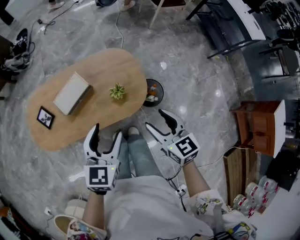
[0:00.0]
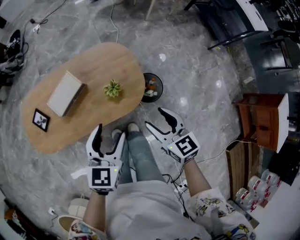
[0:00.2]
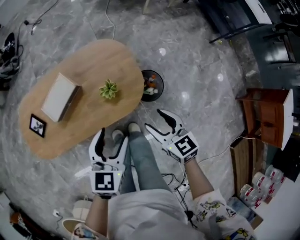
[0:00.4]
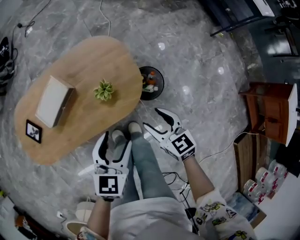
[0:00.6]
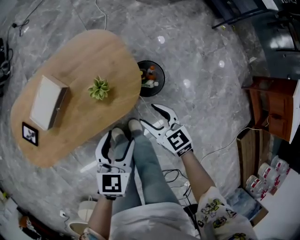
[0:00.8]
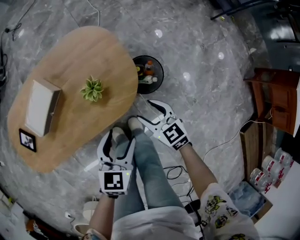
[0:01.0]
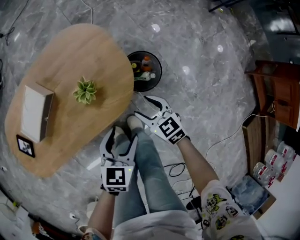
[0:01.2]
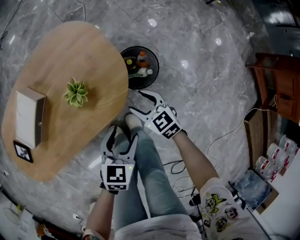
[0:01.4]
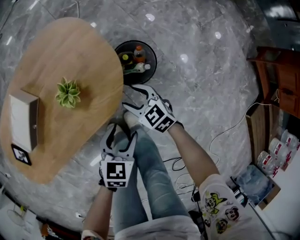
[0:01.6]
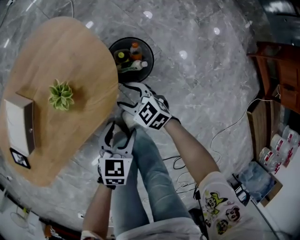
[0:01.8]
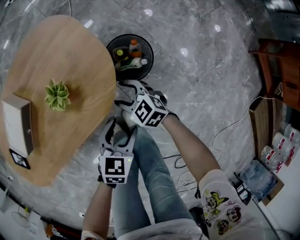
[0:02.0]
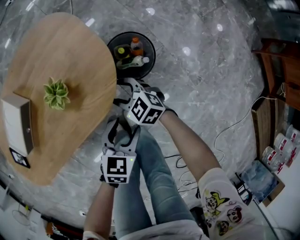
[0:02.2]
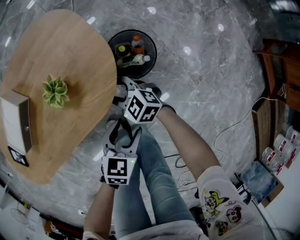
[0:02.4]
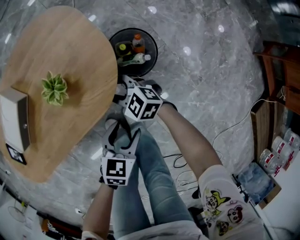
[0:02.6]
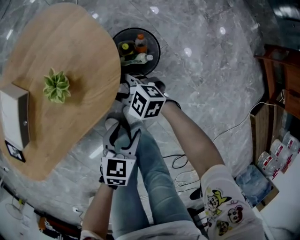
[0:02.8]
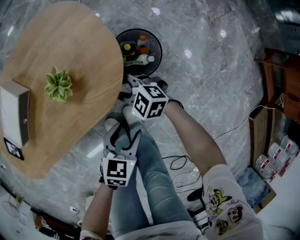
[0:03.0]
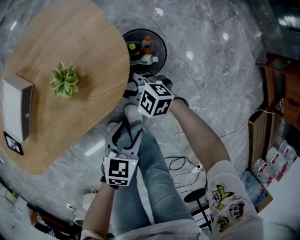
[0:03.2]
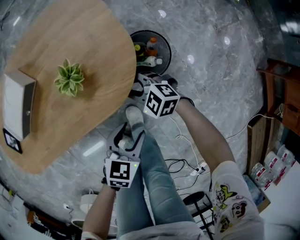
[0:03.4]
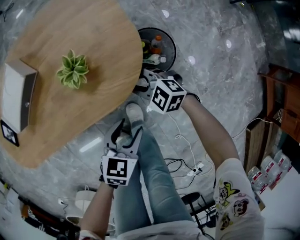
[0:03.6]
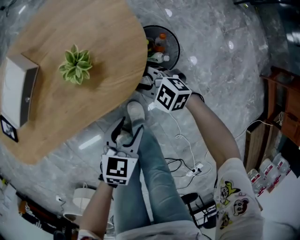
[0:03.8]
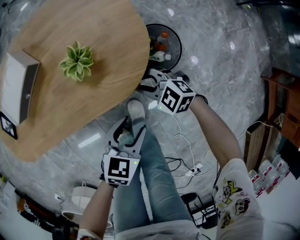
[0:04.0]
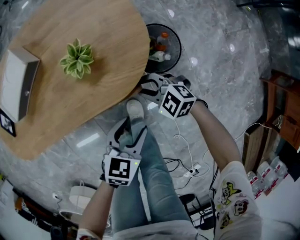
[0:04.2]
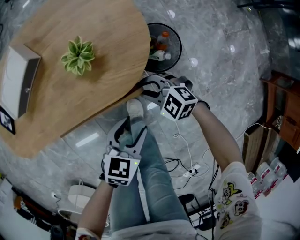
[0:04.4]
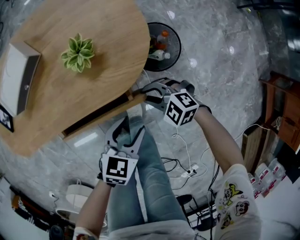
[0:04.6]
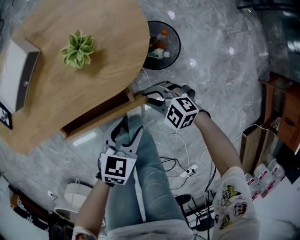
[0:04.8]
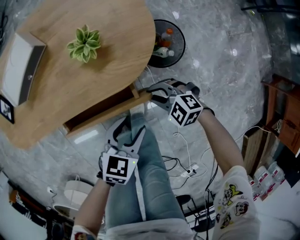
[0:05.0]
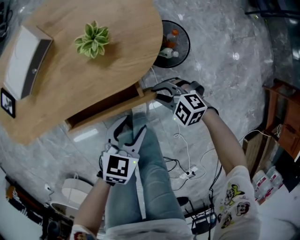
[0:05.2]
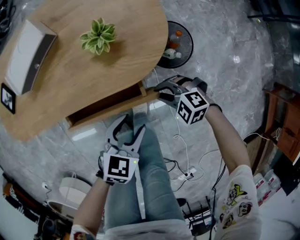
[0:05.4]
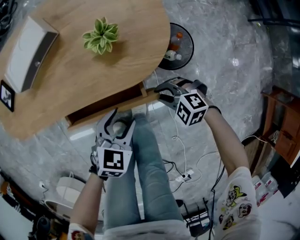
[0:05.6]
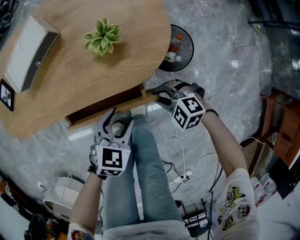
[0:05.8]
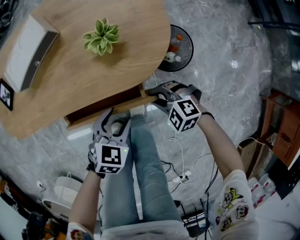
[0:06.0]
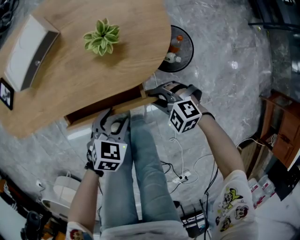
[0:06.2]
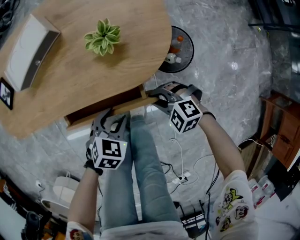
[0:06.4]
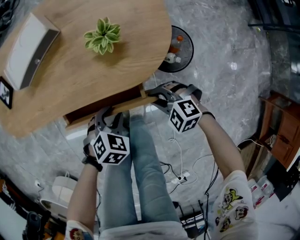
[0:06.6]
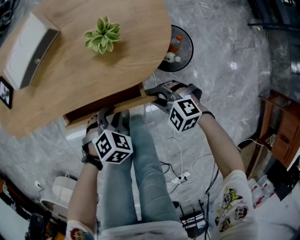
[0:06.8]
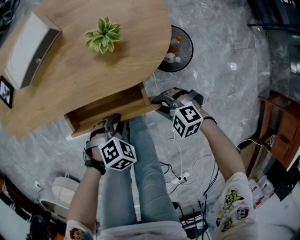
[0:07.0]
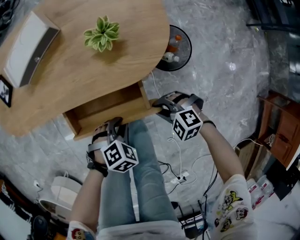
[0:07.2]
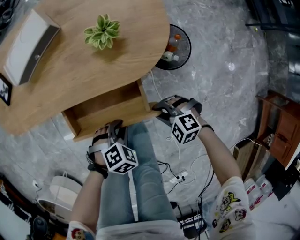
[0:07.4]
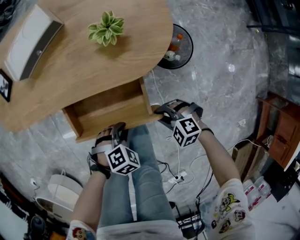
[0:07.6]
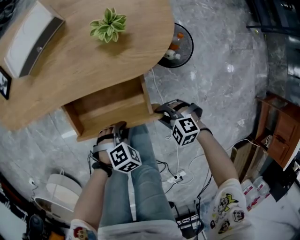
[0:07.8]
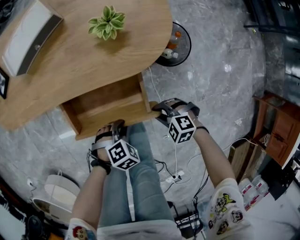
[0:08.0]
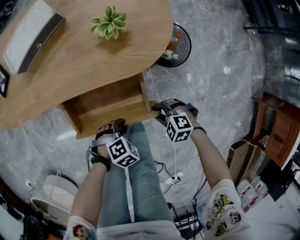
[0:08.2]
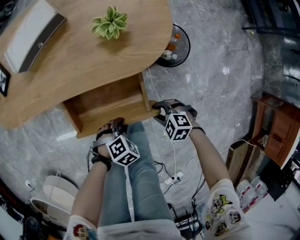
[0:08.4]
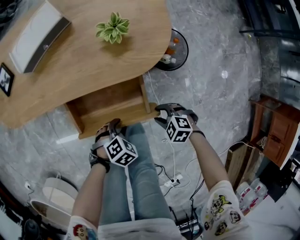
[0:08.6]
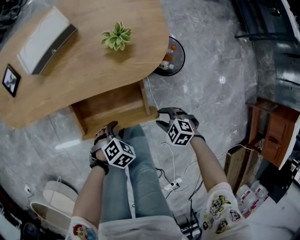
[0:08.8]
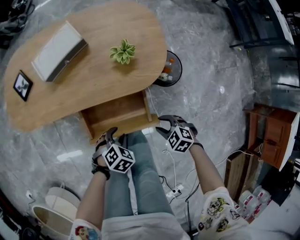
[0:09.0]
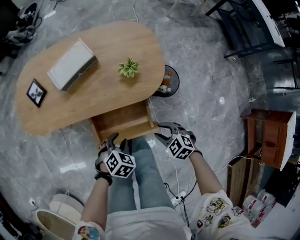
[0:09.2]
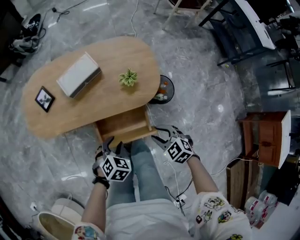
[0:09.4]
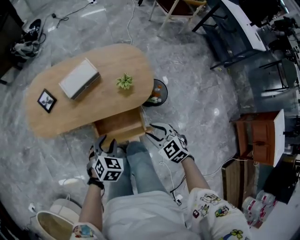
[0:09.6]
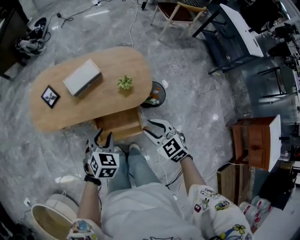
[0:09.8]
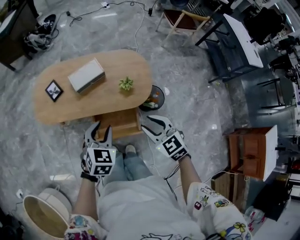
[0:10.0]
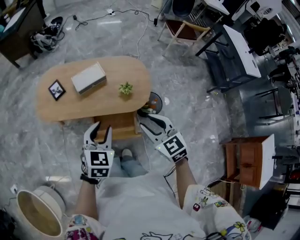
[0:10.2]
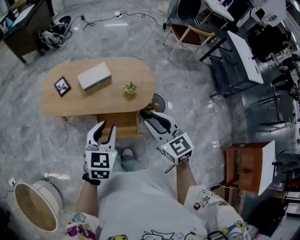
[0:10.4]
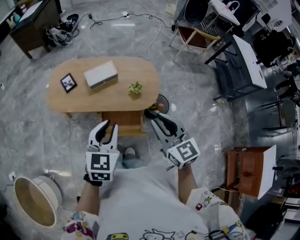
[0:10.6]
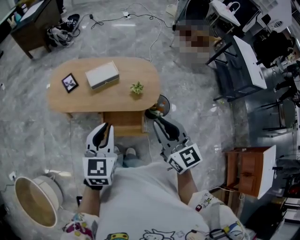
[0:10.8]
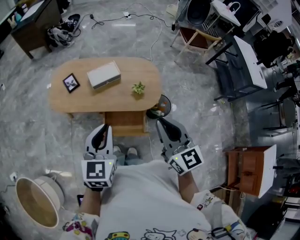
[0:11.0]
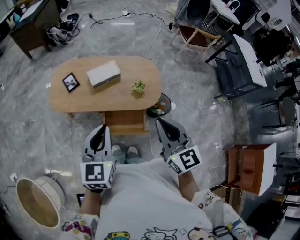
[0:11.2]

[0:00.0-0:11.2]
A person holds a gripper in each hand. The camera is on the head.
0.0 to 1.6 s: The right gripper heads downward, covering some 40 cm; the left gripper travels downward and to the right by about 40 cm, and changes its angle by approximately 30 degrees.
1.6 to 3.2 s: The right gripper moves some 5 cm, rotates roughly 30 degrees, and closes up.
3.2 to 4.8 s: The right gripper ends up roughly 10 cm from where it was.
4.8 to 6.4 s: The left gripper changes place by approximately 10 cm, and rotates about 20 degrees.
6.4 to 8.0 s: The right gripper ends up some 10 cm from where it was. The left gripper ends up some 15 cm from where it was, changes its angle by about 30 degrees, and closes.
8.0 to 9.6 s: Both grippers move upward, some 35 cm. The left gripper swivels about 40 degrees. Meanwhile the right gripper rotates some 40 degrees.
9.6 to 11.2 s: Both grippers travel together upward, about 30 cm. The right gripper tips its fingers upward by some 40 degrees, and closes its fingers. Meanwhile the left gripper angles its fingers upward, by roughly 40 degrees, and closes up.

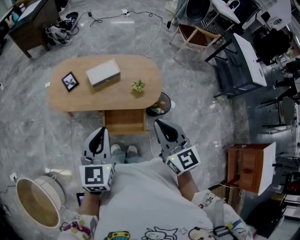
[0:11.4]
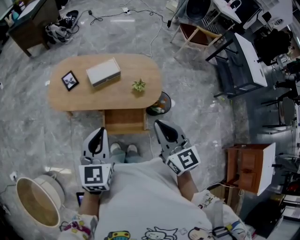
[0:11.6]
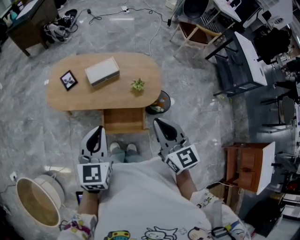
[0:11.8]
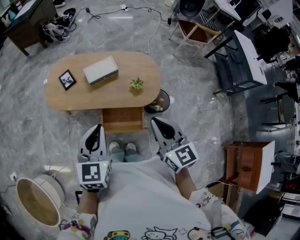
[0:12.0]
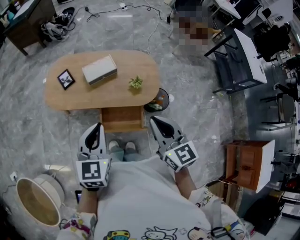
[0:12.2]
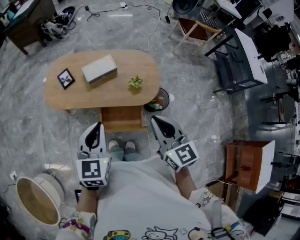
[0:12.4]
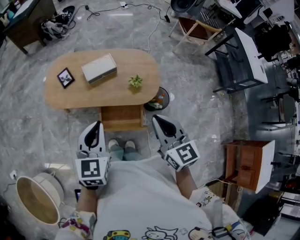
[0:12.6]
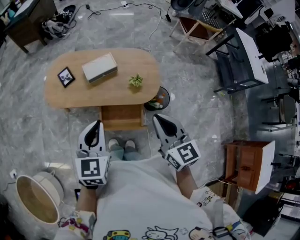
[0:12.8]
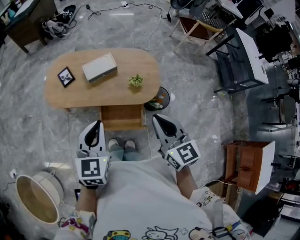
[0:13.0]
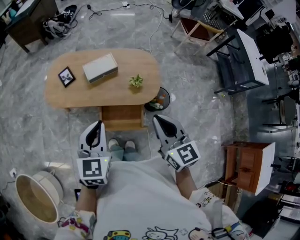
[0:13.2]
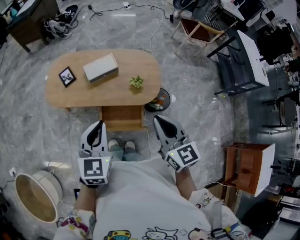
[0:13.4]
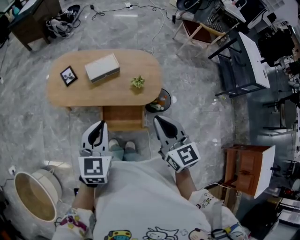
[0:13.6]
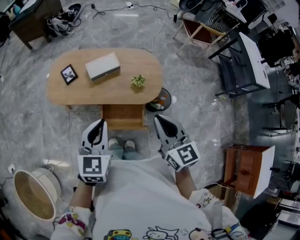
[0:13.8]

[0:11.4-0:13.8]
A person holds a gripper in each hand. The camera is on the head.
11.4 to 12.6 s: The grippers move only a little.
12.6 to 13.8 s: Neither gripper changes place.

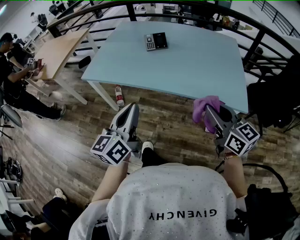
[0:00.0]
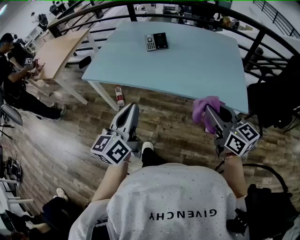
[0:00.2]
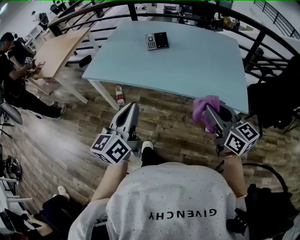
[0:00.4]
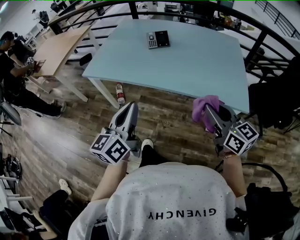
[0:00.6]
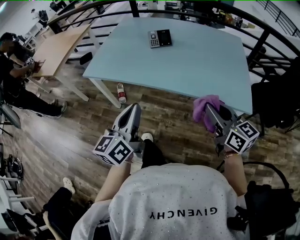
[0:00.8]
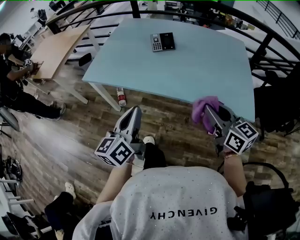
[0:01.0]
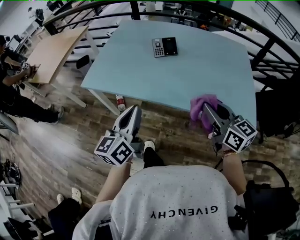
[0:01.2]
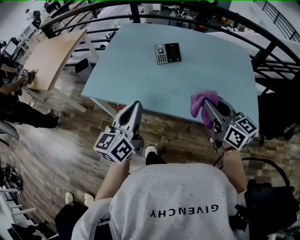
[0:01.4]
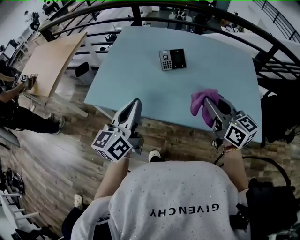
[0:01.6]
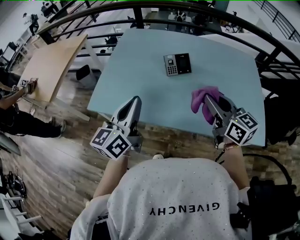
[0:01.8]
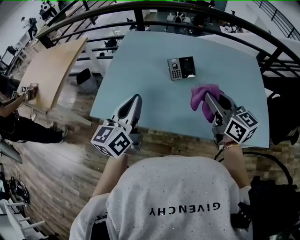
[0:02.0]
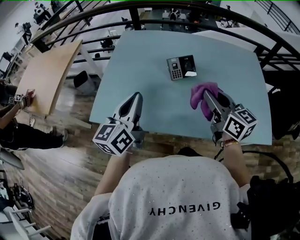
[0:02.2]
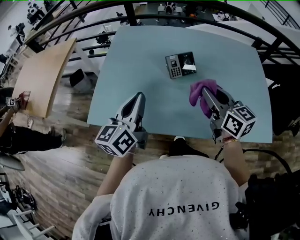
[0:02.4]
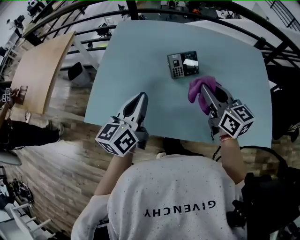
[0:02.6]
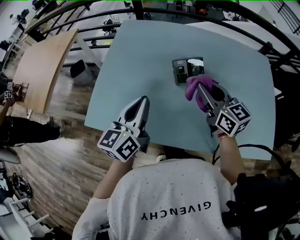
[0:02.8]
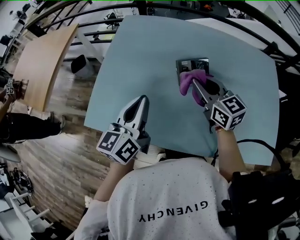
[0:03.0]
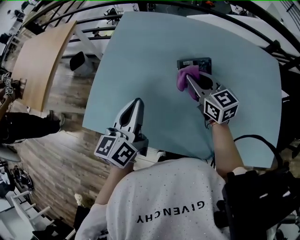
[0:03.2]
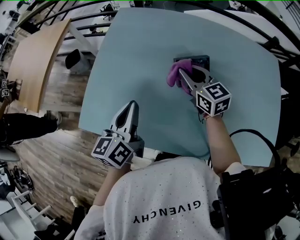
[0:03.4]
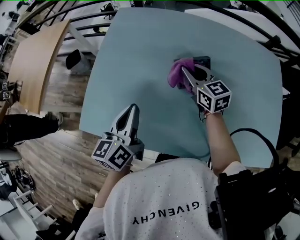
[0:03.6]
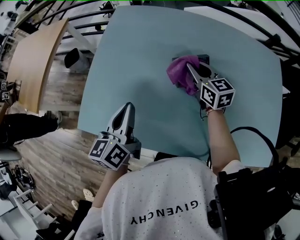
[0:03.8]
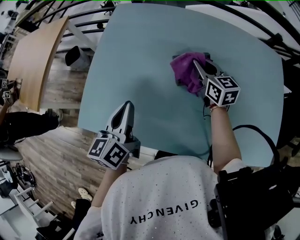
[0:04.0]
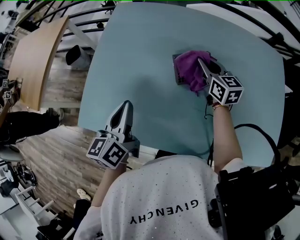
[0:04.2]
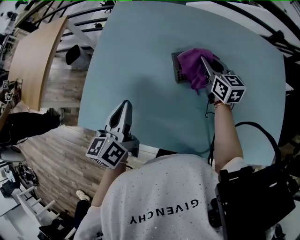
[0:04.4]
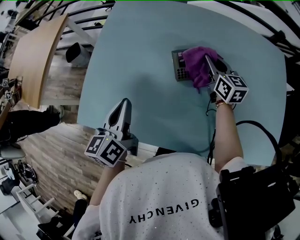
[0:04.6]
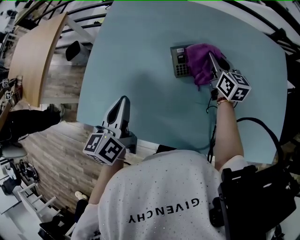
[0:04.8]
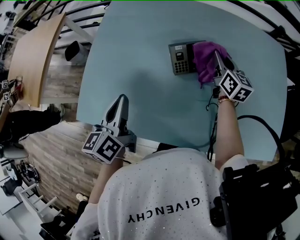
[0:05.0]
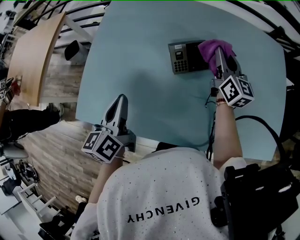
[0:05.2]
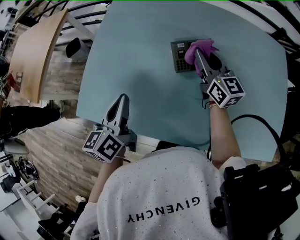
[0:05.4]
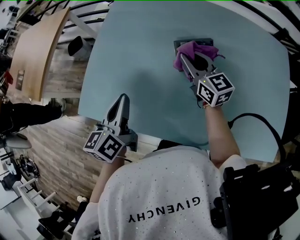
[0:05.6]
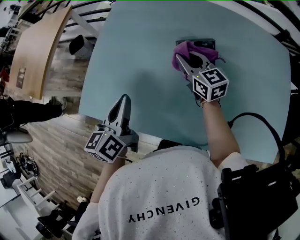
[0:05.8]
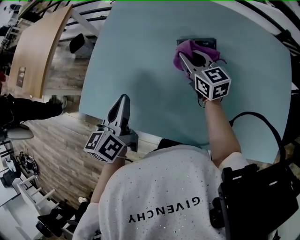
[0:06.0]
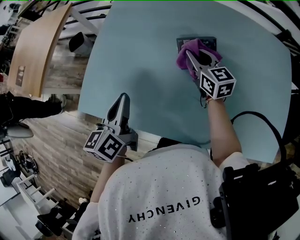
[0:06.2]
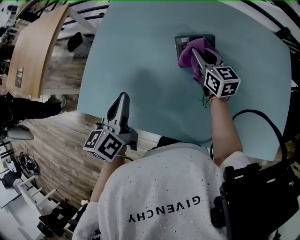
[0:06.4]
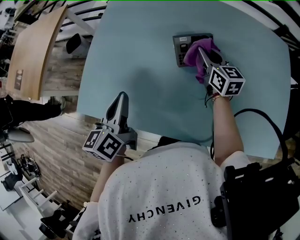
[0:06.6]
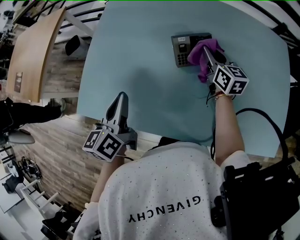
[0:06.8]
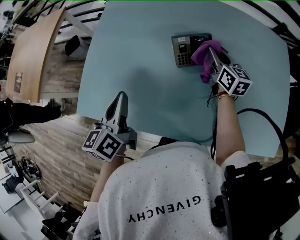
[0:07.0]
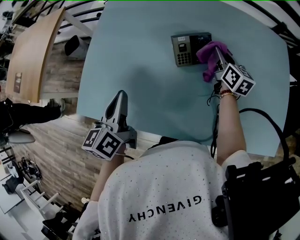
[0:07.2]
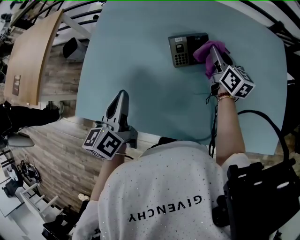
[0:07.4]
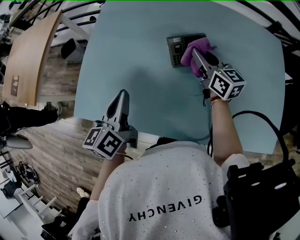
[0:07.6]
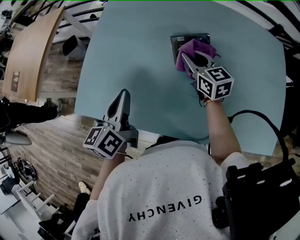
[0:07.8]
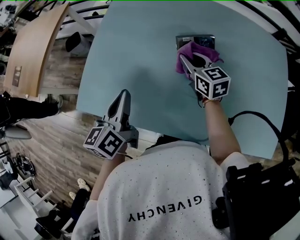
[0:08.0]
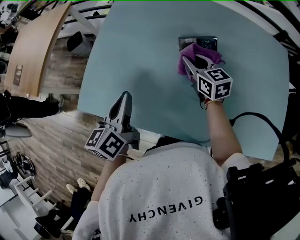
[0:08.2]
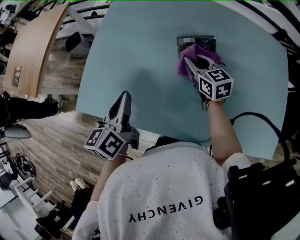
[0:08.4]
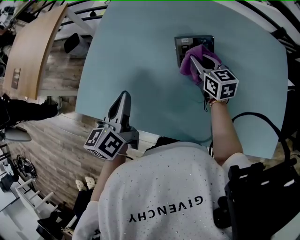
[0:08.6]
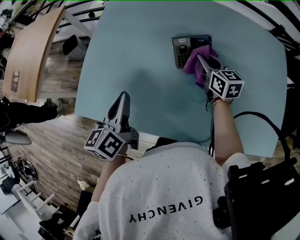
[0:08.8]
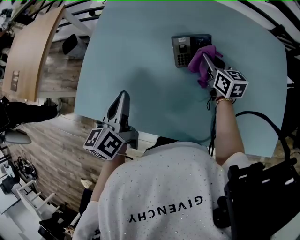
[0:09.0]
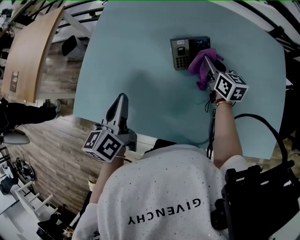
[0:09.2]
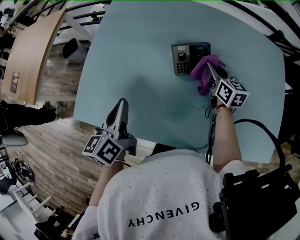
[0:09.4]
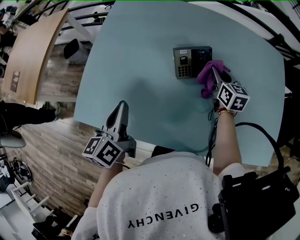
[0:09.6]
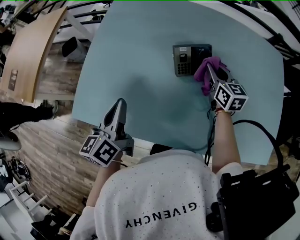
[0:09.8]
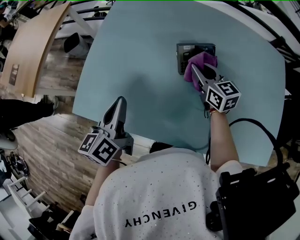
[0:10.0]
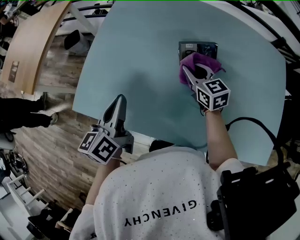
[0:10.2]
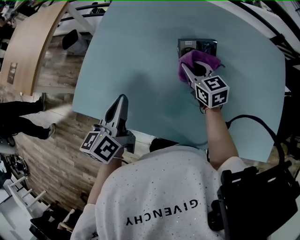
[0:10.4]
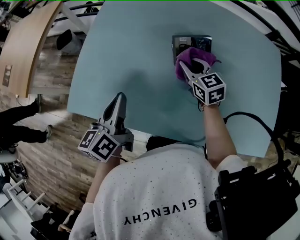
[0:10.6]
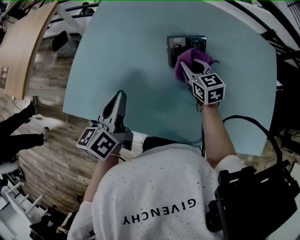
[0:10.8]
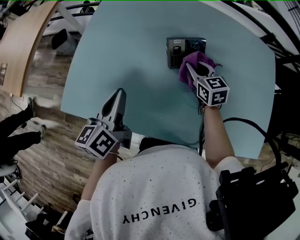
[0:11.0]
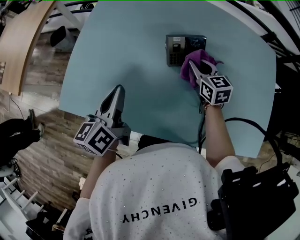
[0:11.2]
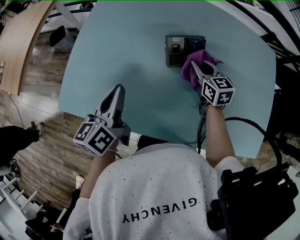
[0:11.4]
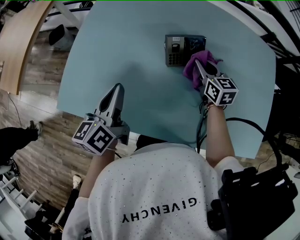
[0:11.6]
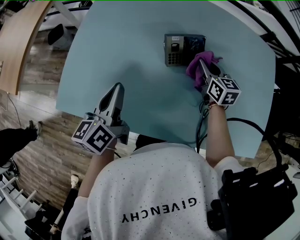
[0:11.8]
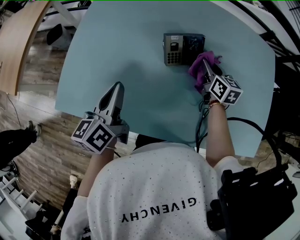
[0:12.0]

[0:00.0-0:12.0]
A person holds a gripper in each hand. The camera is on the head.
0.0 to 1.6 s: The right gripper is displaced forward and to the left by approximately 25 cm, while the left gripper is displaced forward by some 25 cm.
1.6 to 3.0 s: The two grippers go approximately 20 cm forward.
3.0 to 4.4 s: The left gripper moves downward, roughly 5 cm. Meanwhile the right gripper heads forward, to the right and downward, covering about 15 cm.
4.4 to 6.0 s: The right gripper moves to the left, some 10 cm.
6.0 to 7.6 s: The right gripper goes approximately 10 cm to the right.
7.6 to 9.0 s: The right gripper is displaced downward by about 5 cm.
9.0 to 10.4 s: The right gripper travels to the left by roughly 10 cm, and swivels approximately 20 degrees.
10.4 to 12.0 s: The left gripper ends up some 5 cm from where it was. The right gripper goes about 15 cm to the right, and changes its angle by some 30 degrees.
